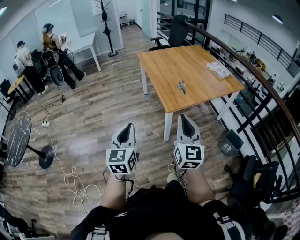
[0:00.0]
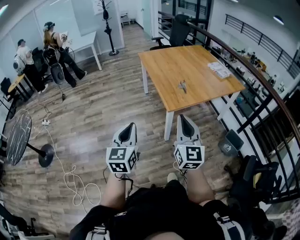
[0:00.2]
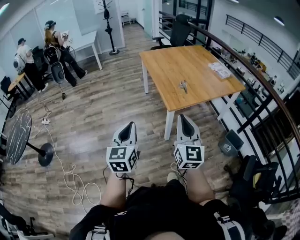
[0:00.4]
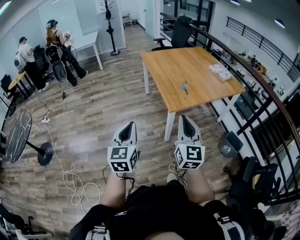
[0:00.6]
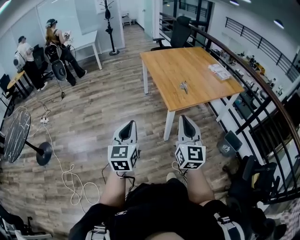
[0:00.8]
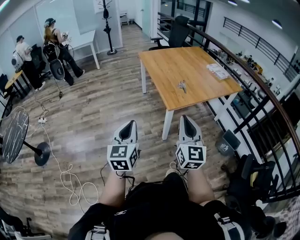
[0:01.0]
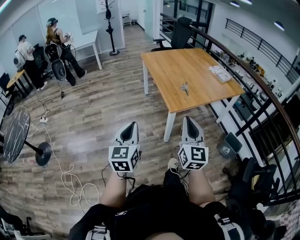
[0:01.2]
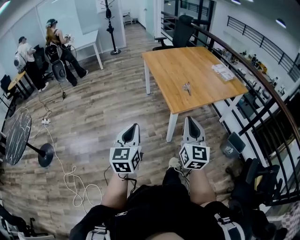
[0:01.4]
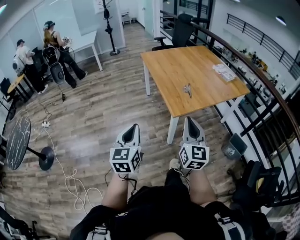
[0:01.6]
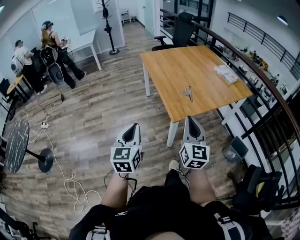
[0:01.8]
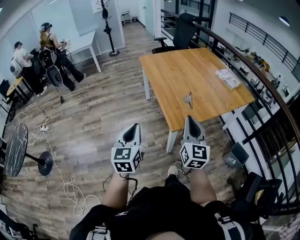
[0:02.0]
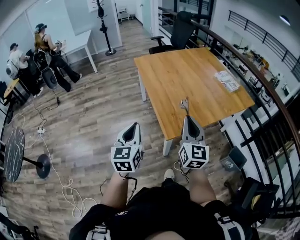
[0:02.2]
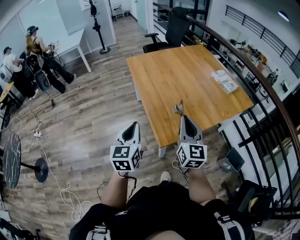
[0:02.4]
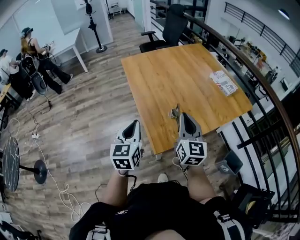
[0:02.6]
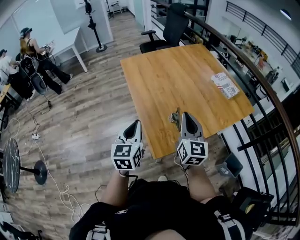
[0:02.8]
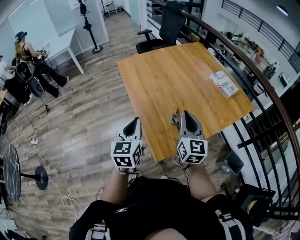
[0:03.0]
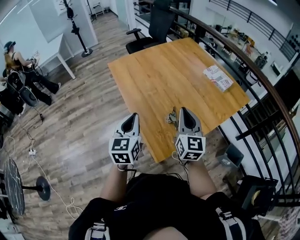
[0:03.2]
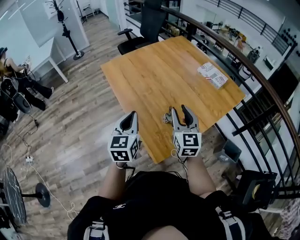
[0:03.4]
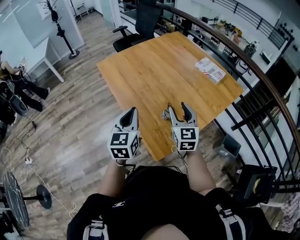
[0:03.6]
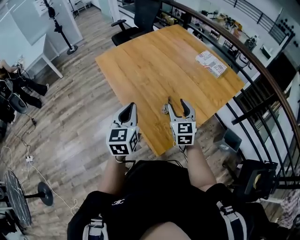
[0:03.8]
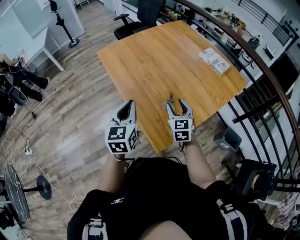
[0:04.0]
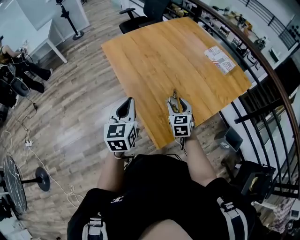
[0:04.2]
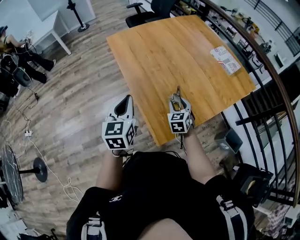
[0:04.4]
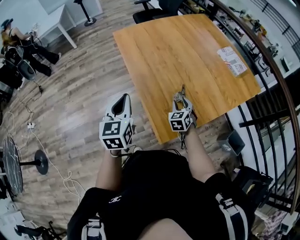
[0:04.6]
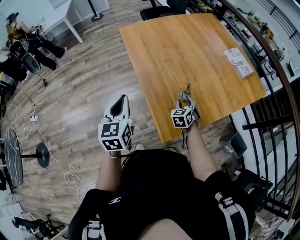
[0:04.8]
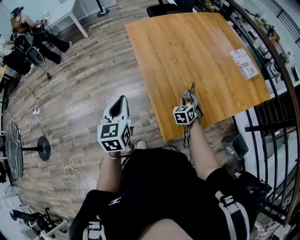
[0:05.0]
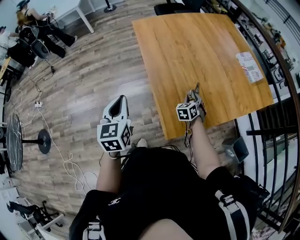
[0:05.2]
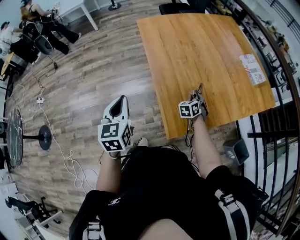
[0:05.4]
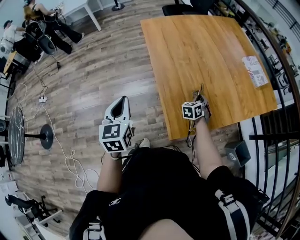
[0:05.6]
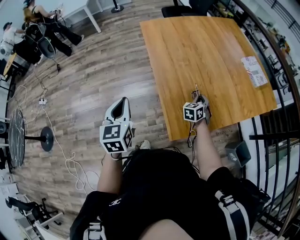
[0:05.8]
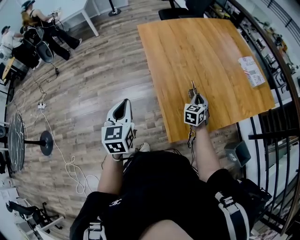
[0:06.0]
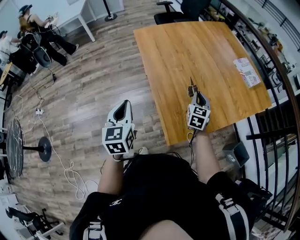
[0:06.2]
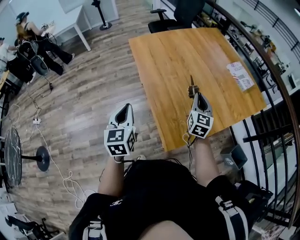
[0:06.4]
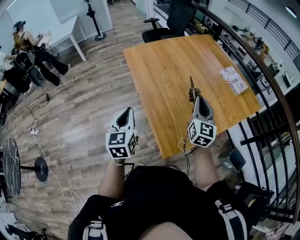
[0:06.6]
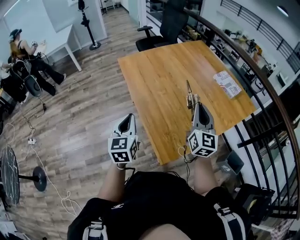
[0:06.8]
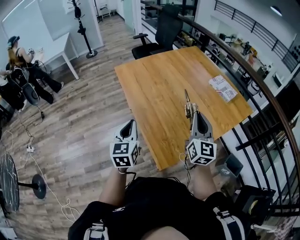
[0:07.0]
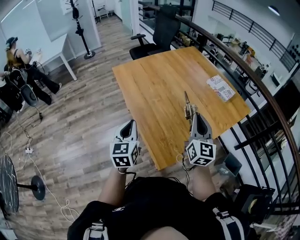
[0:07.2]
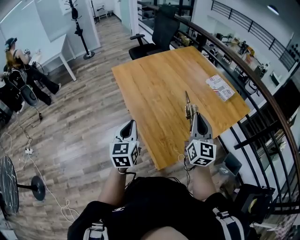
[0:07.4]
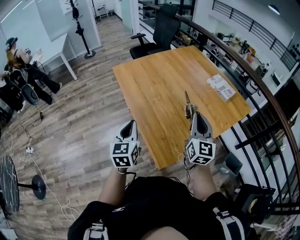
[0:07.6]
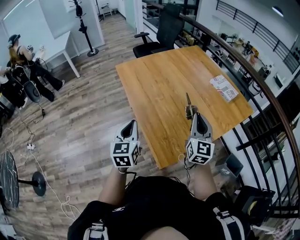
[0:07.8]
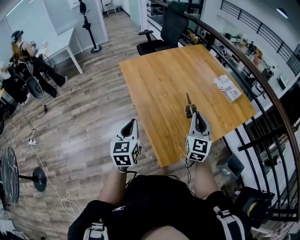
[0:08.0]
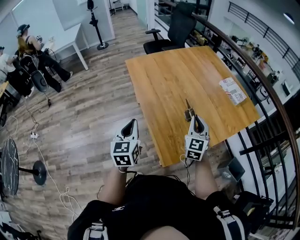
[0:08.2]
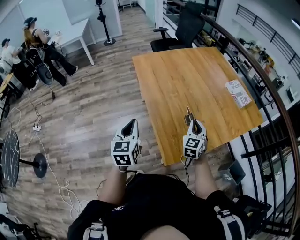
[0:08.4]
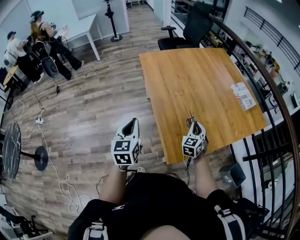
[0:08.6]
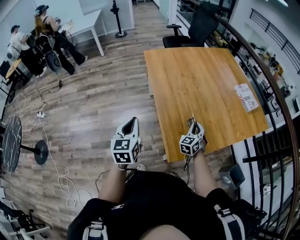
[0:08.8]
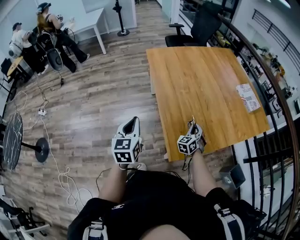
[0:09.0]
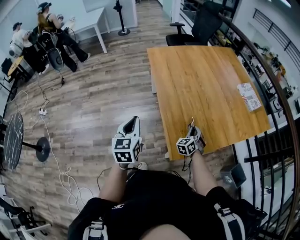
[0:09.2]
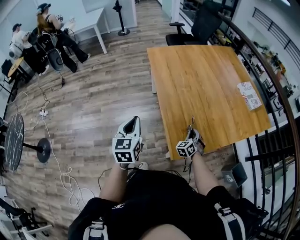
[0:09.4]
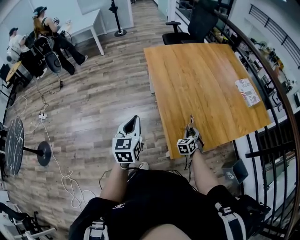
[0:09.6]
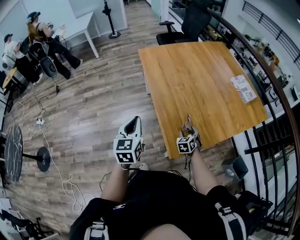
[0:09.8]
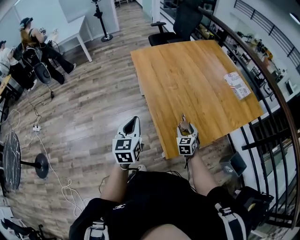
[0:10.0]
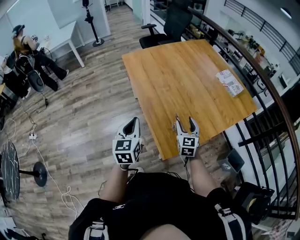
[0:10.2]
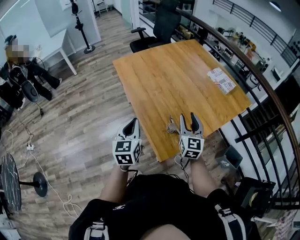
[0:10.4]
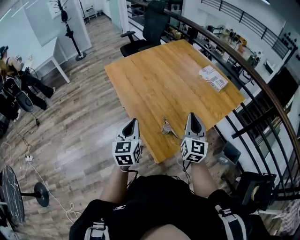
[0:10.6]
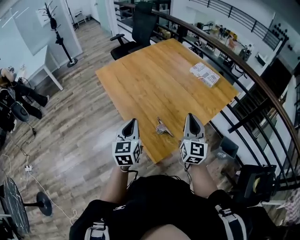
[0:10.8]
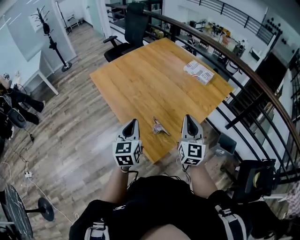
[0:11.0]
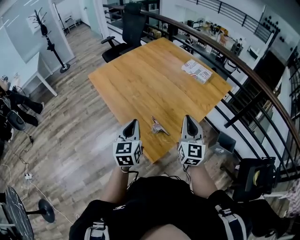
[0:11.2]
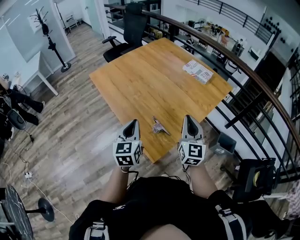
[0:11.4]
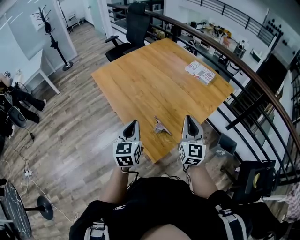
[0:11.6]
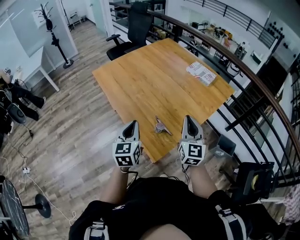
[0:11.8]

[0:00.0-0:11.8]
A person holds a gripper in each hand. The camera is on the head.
0:00.0 to 0:01.4: The grippers move only a little.
0:01.4 to 0:03.0: Both grippers are carried forward, roughly 60 cm.
0:03.0 to 0:04.4: The right gripper travels downward by approximately 25 cm, tips its fingers downward by about 30 degrees, and opens. The left gripper is displaced forward and to the left by roughly 10 cm.
0:04.4 to 0:06.0: The left gripper goes some 10 cm to the left and backward. Meanwhile the right gripper travels downward and back again, roughly 10 cm each way, and closes its fingers.
0:06.0 to 0:07.4: The right gripper shifts some 25 cm upward, and tilts its fingers approximately 40 degrees upward, while the left gripper goes some 10 cm to the right and forward.
0:07.4 to 0:08.8: The left gripper travels to the left and backward by about 10 cm. Meanwhile the right gripper heads downward, covering approximately 25 cm, and changes its angle by about 40 degrees.
0:08.8 to 0:10.4: The right gripper shifts about 15 cm upward, swivels about 30 degrees, and opens up; the left gripper is displaced to the right by some 10 cm.
0:10.4 to 0:11.8: The right gripper heads to the right, backward and upward, covering approximately 10 cm, and closes up; the left gripper moves to the right, roughly 5 cm.

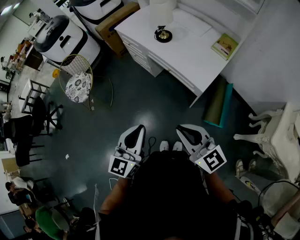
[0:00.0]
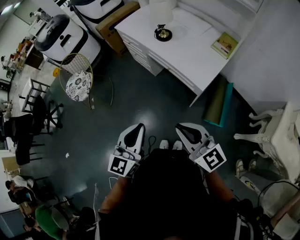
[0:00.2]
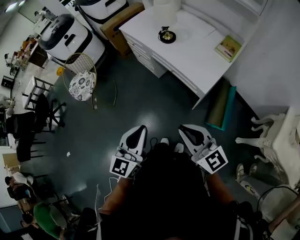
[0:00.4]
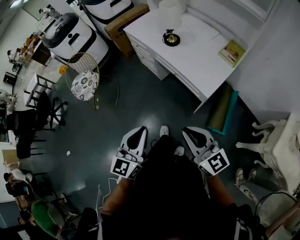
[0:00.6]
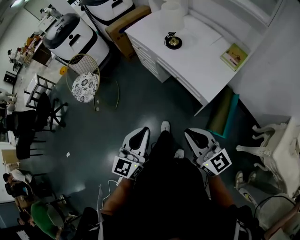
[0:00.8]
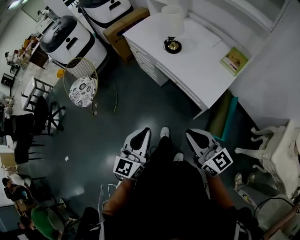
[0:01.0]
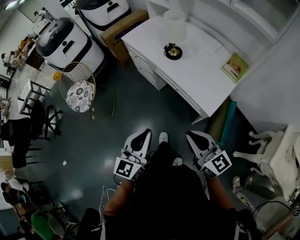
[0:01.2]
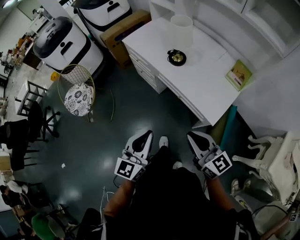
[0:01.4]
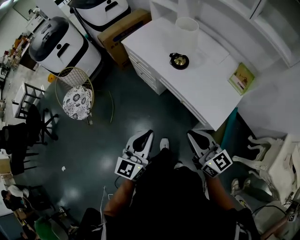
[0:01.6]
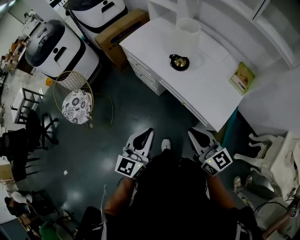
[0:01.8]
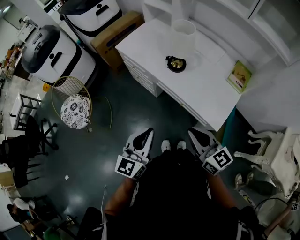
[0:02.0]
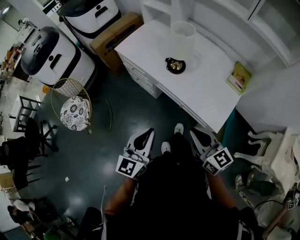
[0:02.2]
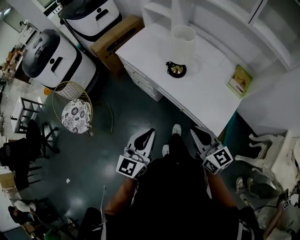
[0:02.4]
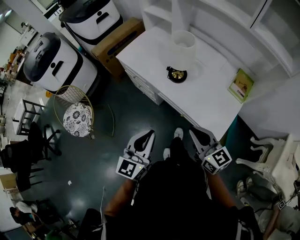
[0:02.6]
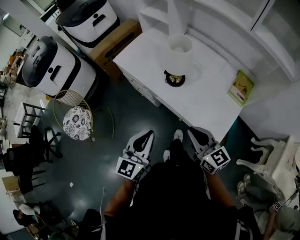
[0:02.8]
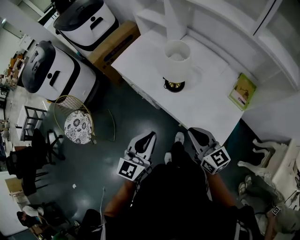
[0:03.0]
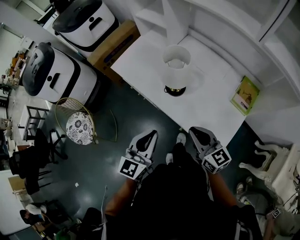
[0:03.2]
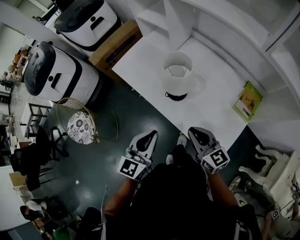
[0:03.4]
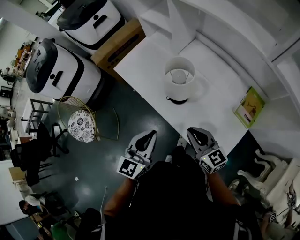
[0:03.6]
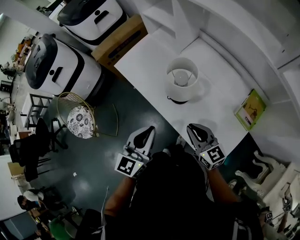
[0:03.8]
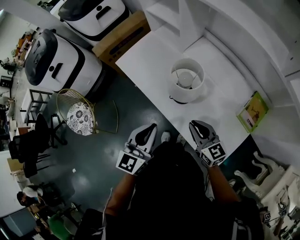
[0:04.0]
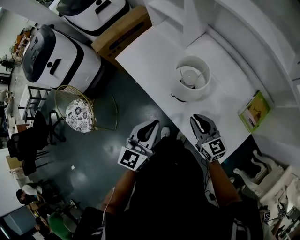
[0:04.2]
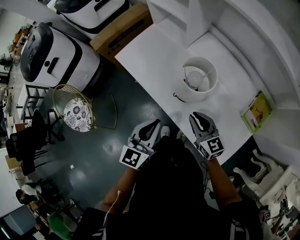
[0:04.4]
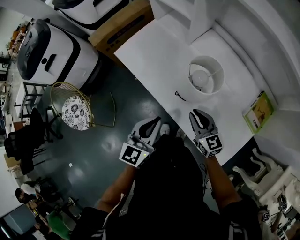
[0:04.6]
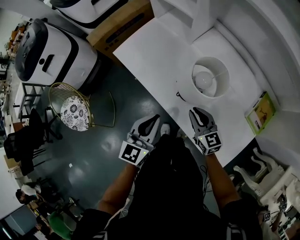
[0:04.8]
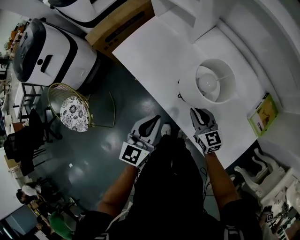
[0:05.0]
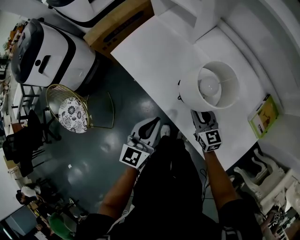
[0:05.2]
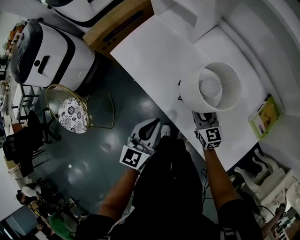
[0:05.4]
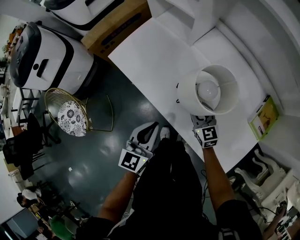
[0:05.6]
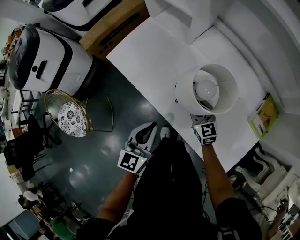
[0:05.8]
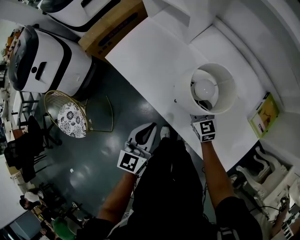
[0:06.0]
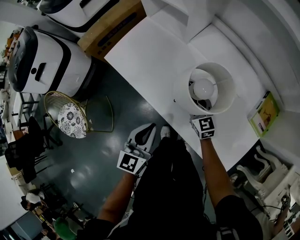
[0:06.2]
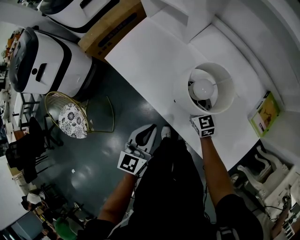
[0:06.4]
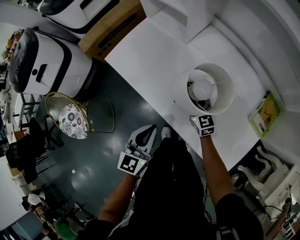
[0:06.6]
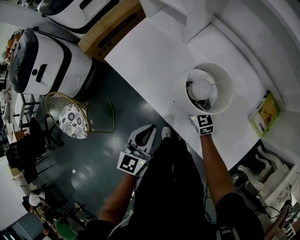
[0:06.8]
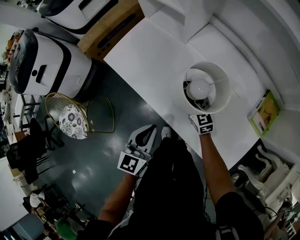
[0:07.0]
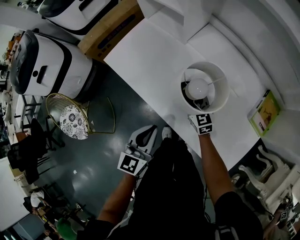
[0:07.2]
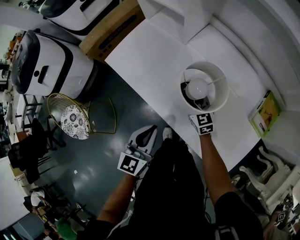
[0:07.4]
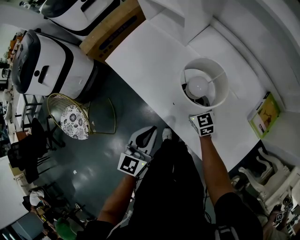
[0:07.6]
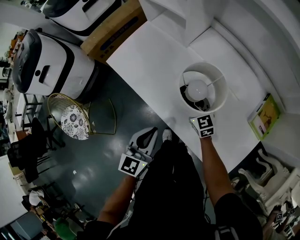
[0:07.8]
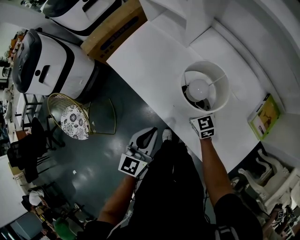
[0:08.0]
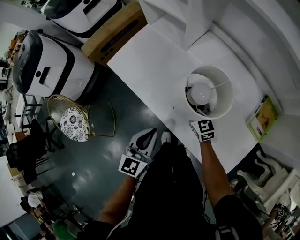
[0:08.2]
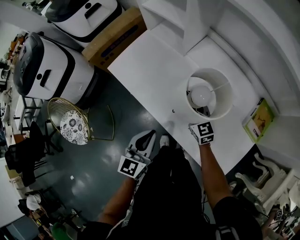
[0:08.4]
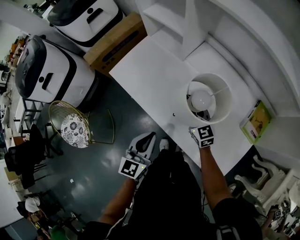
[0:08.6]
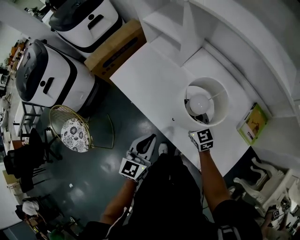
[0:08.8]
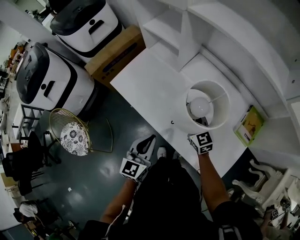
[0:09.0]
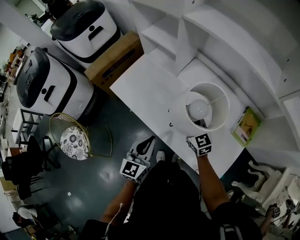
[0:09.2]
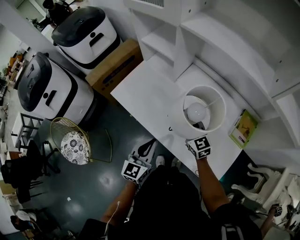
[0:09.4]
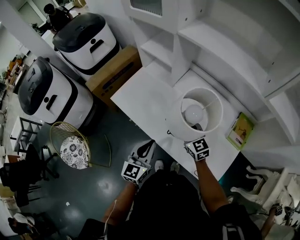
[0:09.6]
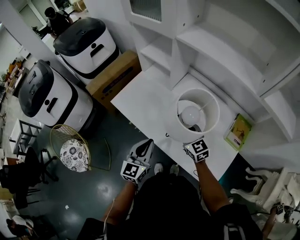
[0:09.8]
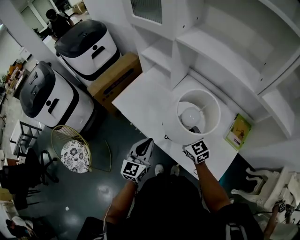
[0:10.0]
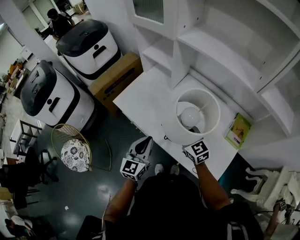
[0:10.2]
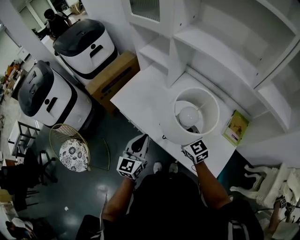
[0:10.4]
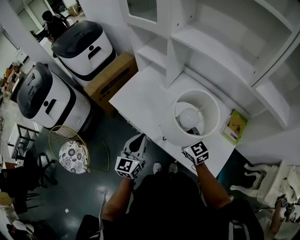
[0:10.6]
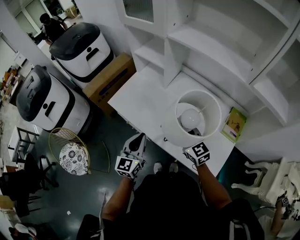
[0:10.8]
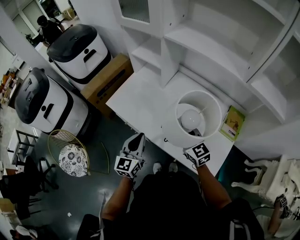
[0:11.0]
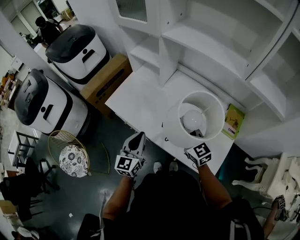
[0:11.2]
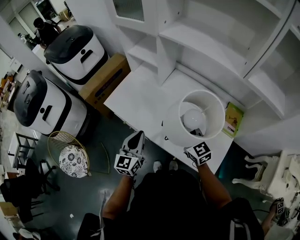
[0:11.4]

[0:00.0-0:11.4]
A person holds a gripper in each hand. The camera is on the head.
0:00.0 to 0:01.4: The grippers both shift forward by approximately 15 cm.
0:01.4 to 0:02.8: Both grippers travel together forward, some 20 cm.
0:02.8 to 0:04.2: The left gripper heads forward, covering about 20 cm; the right gripper moves forward and downward, some 20 cm.
0:04.2 to 0:05.6: The left gripper goes some 10 cm downward; the right gripper is displaced downward and forward by approximately 15 cm.
0:05.6 to 0:07.2: The right gripper shifts by roughly 5 cm.
0:07.2 to 0:08.6: The right gripper goes approximately 10 cm upward.
0:08.6 to 0:10.0: The right gripper heads upward, covering approximately 15 cm. Meanwhile the left gripper goes about 5 cm upward.
0:10.0 to 0:11.4: The right gripper is displaced backward by about 5 cm.
